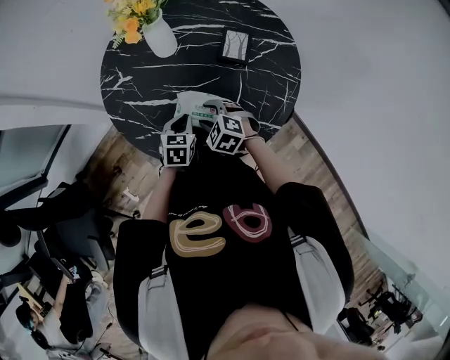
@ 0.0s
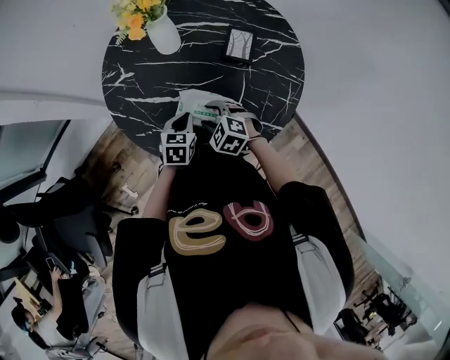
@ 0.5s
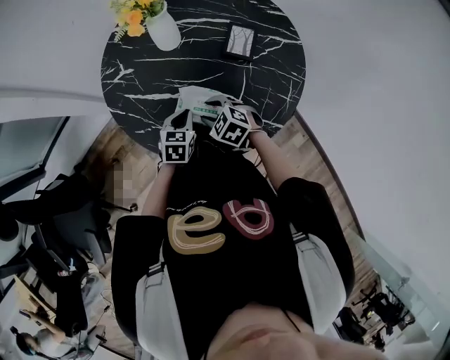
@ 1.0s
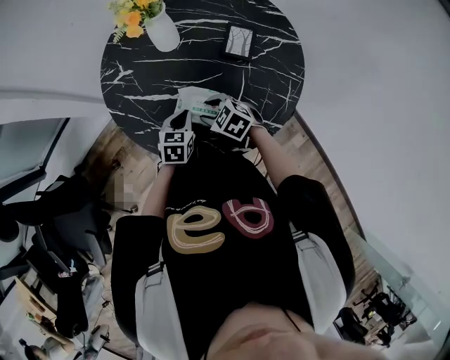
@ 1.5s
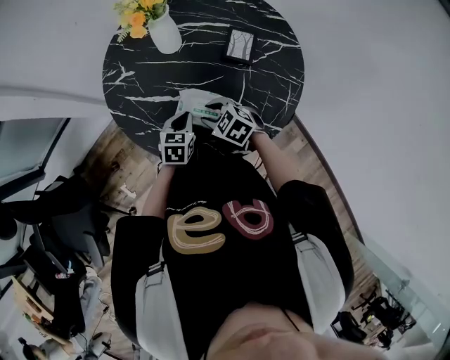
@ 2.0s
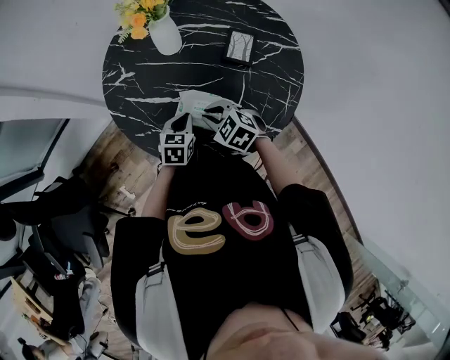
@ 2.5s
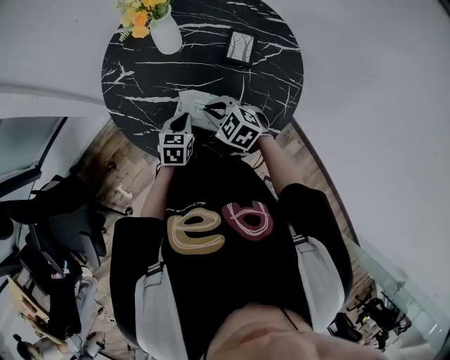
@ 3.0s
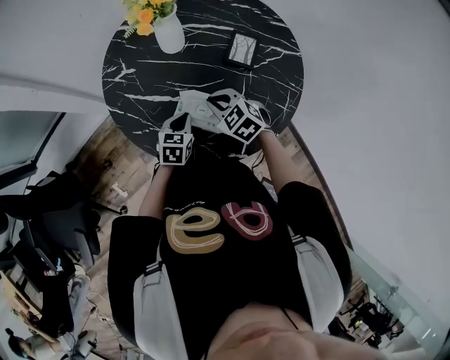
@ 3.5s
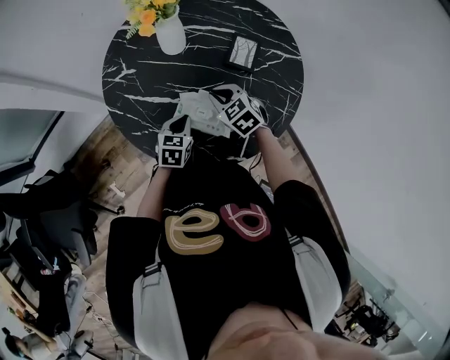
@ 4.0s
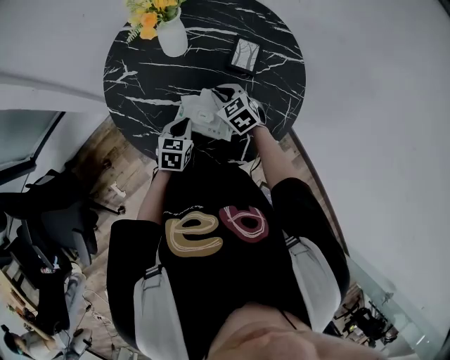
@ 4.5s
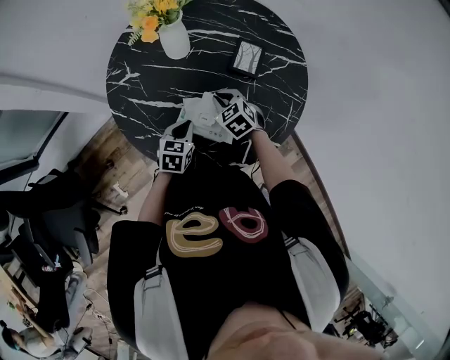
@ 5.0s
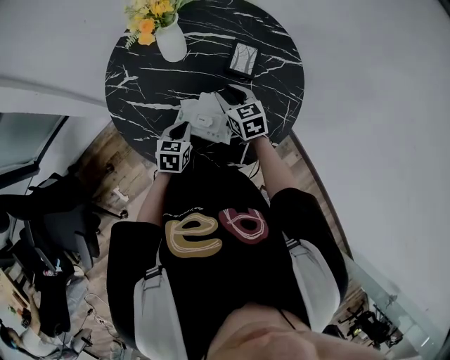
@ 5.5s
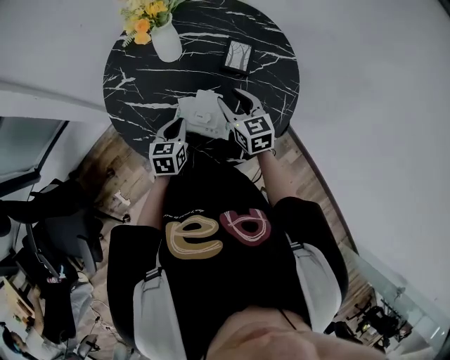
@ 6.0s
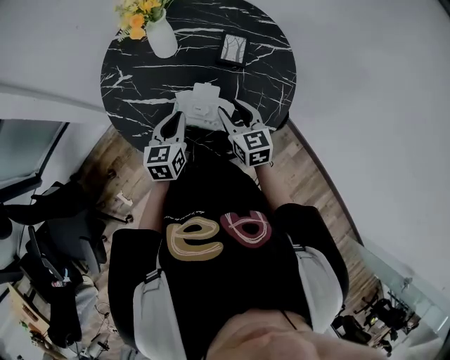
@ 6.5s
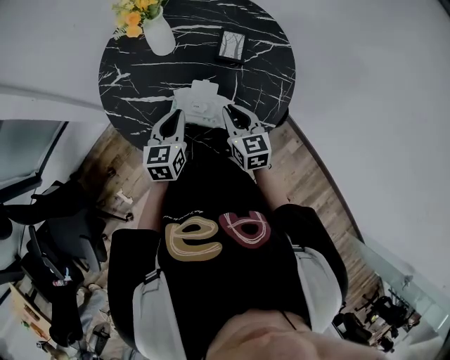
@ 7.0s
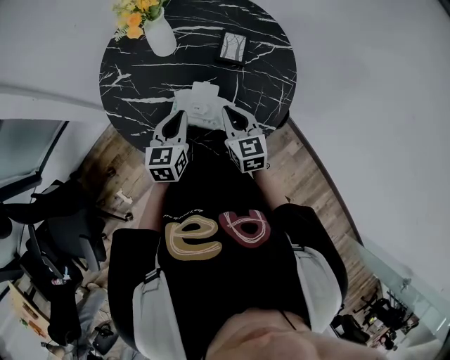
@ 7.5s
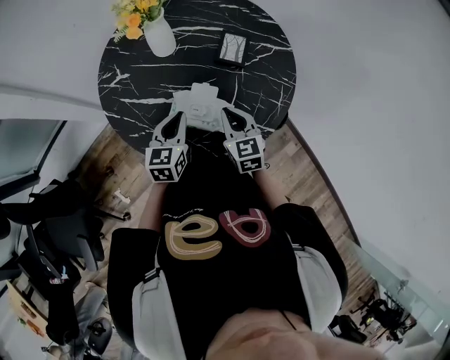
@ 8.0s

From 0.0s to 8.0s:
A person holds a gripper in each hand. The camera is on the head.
From 0.0s to 2.0s: The grippers make only small movements.
From 2.0s to 4.0s: The right gripper travels forward by some 5 cm, and closes up.
From 4.0s to 6.0s: The right gripper moves to the right and upward, some 5 cm, turns by approximately 30 degrees, and opens up.
From 6.0s to 8.0s: The right gripper heads backward, covering approximately 5 cm, and closes; the left gripper moves upward, approximately 5 cm.

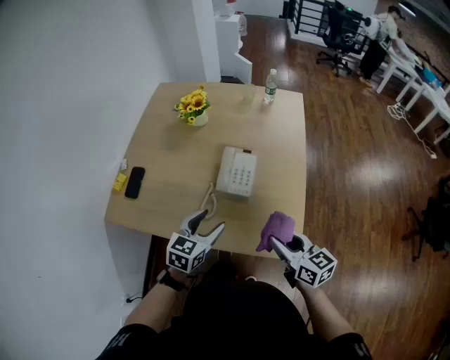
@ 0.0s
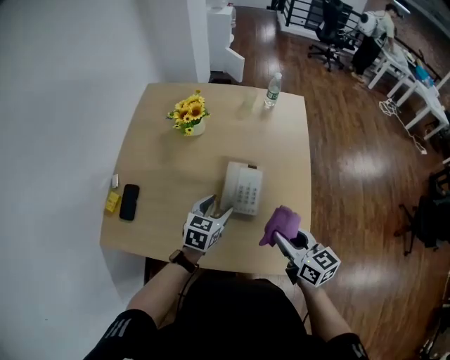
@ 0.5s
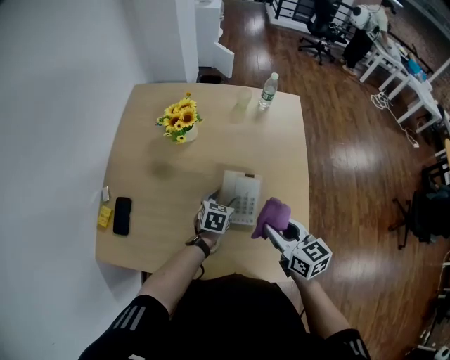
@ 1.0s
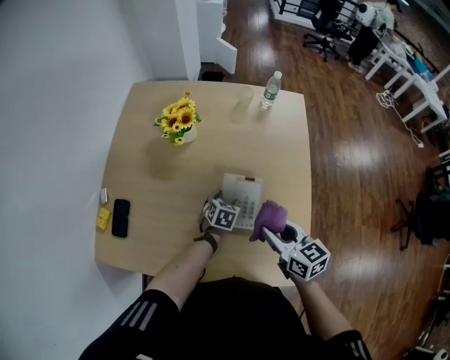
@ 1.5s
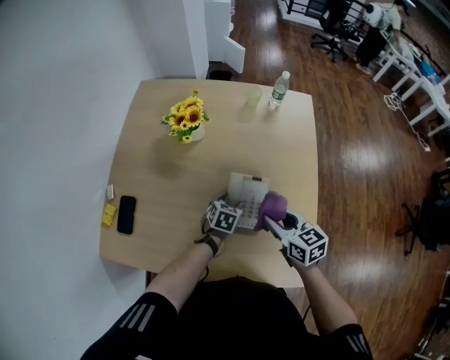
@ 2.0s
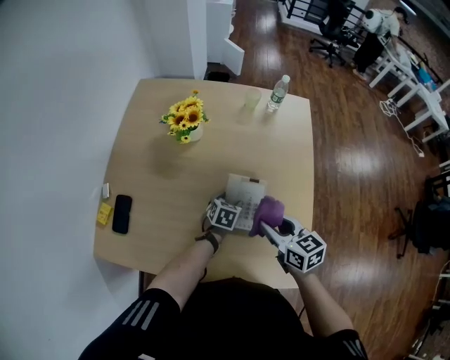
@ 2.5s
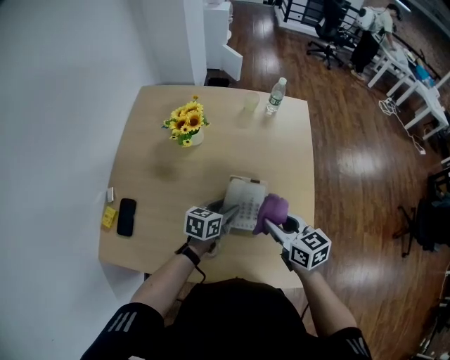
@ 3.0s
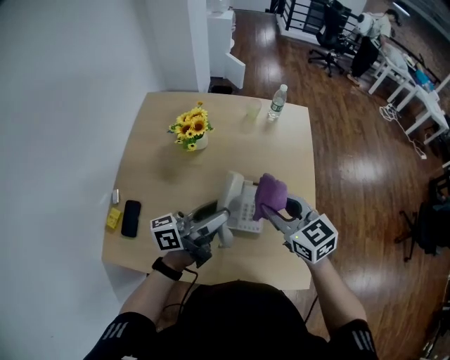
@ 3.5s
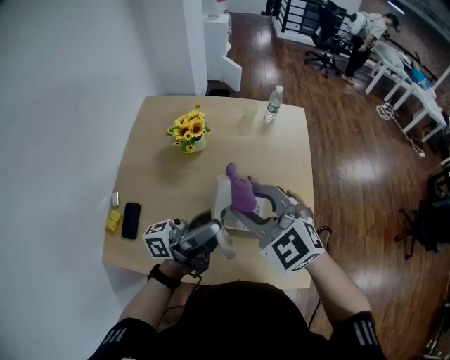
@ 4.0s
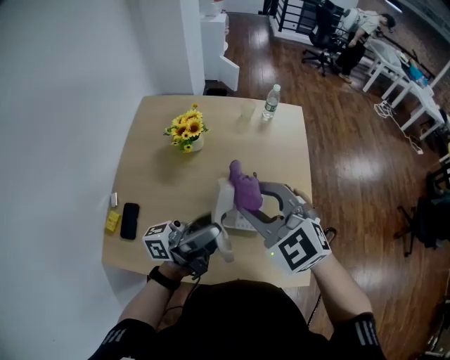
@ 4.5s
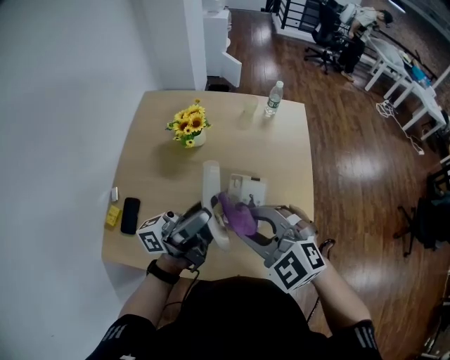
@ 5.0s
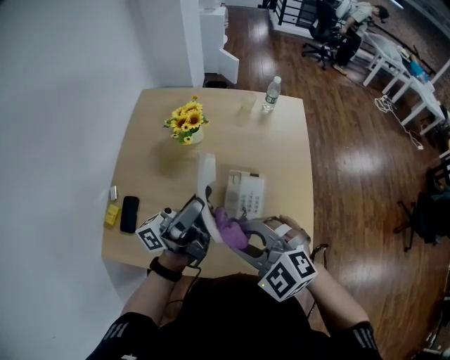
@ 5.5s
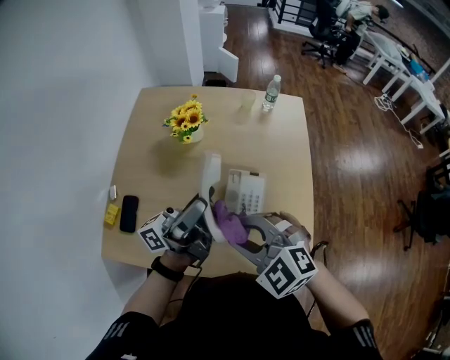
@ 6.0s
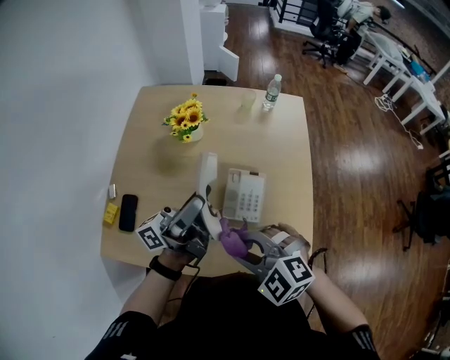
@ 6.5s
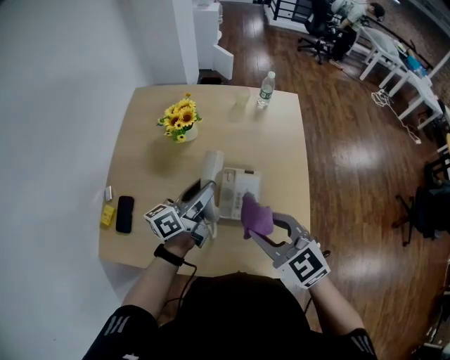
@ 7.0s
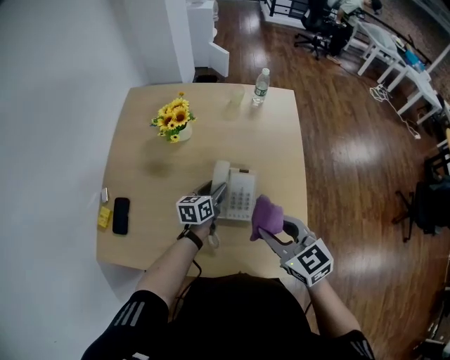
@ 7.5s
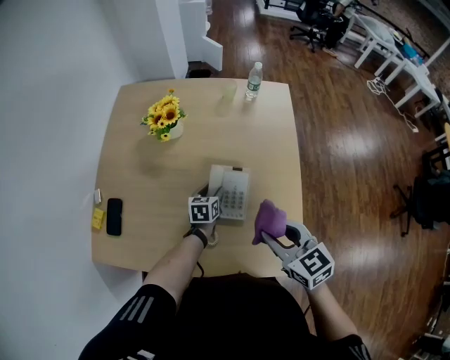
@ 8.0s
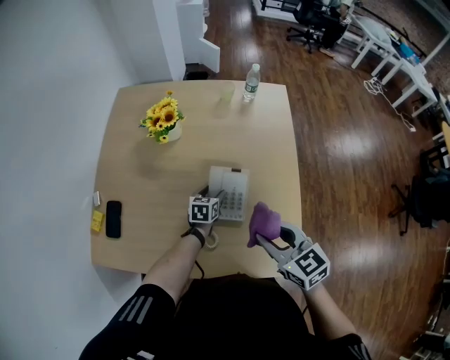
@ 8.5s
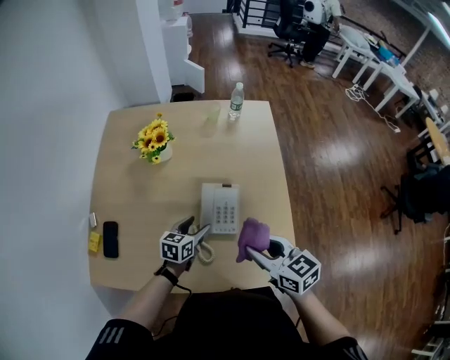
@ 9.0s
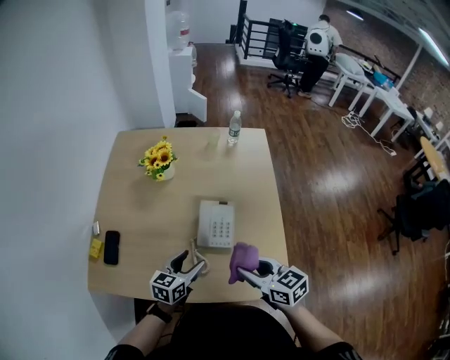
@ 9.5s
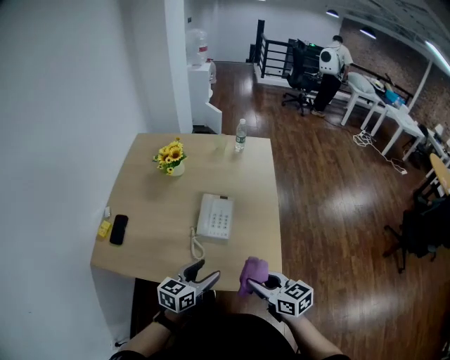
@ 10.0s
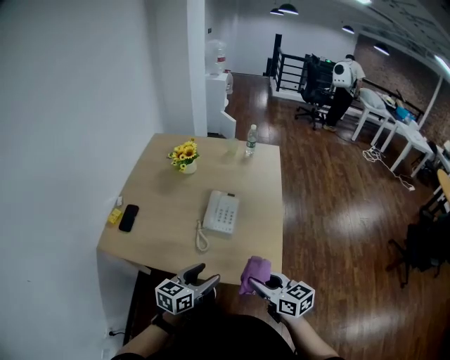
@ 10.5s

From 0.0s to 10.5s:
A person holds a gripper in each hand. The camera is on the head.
From 0.0s to 2.0s: The left gripper is displaced forward and downward by about 30 cm, and changes its angle by approximately 20 degrees. The right gripper travels forward by roughly 25 cm.
From 2.0s to 4.0s: The left gripper moves upward, roughly 35 cm, and angles its fingers upward, by about 80 degrees; the right gripper travels upward and to the left by some 25 cm, and rolls counterclockwise, seen from behind, by roughly 50 degrees.
From 4.0s to 6.5s: The right gripper is displaced backward and downward by some 15 cm, and changes its angle by about 20 degrees.
From 6.5s to 8.5s: The right gripper moves to the right, roughly 15 cm, and rolls clockwise, seen from behind, by about 50 degrees; the left gripper is displaced downward by roughly 35 cm, and points its fingers approximately 80 degrees further downward.
From 8.5s to 10.5s: The right gripper goes some 20 cm backward. Meanwhile the left gripper travels backward and upward by roughly 40 cm, and changes its angle by approximately 30 degrees.

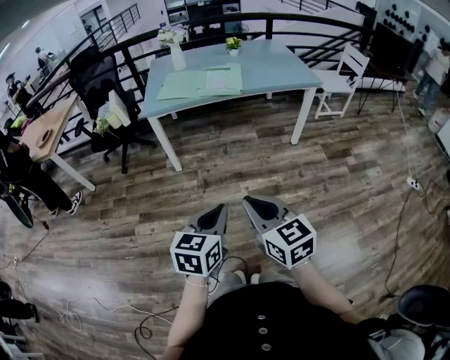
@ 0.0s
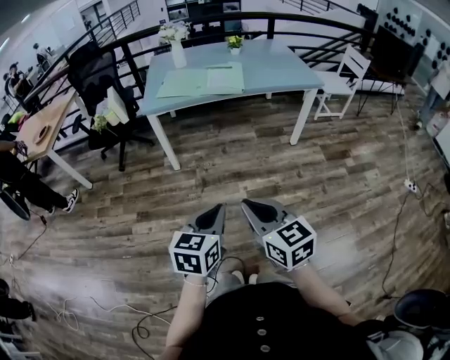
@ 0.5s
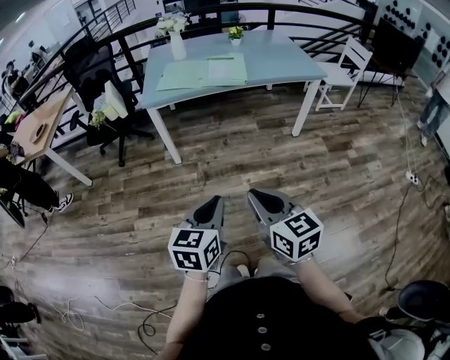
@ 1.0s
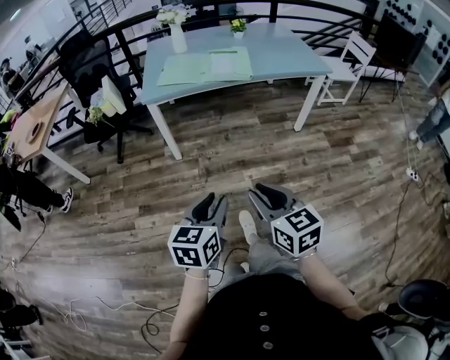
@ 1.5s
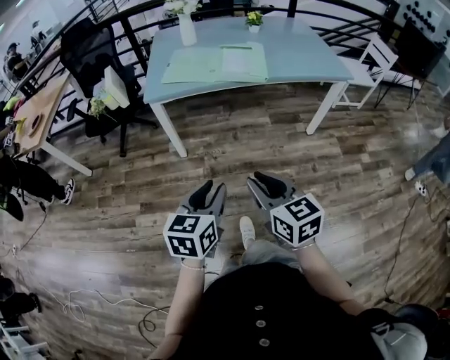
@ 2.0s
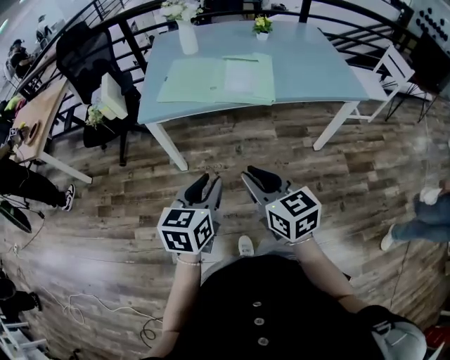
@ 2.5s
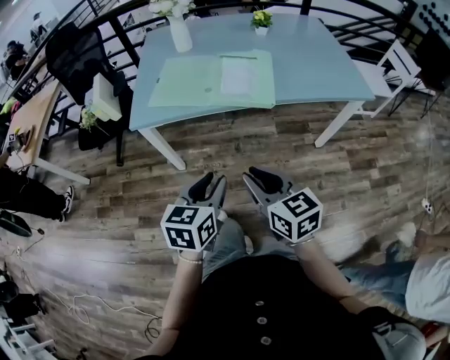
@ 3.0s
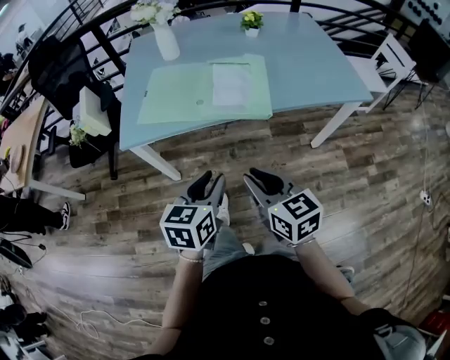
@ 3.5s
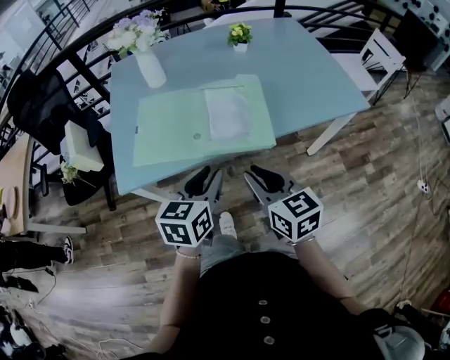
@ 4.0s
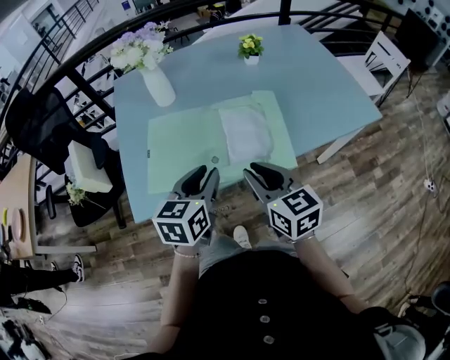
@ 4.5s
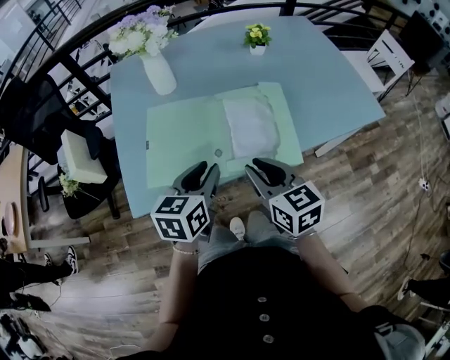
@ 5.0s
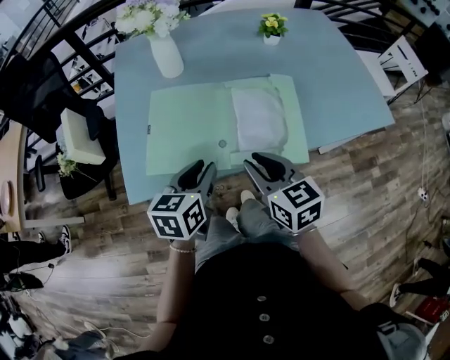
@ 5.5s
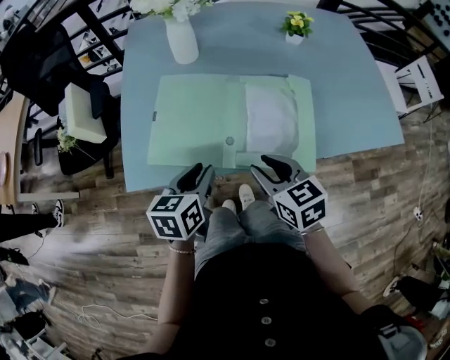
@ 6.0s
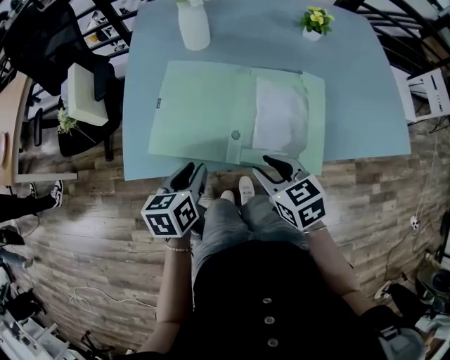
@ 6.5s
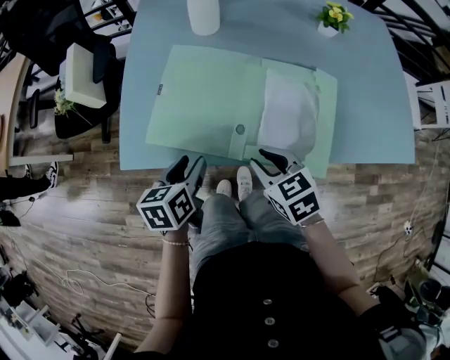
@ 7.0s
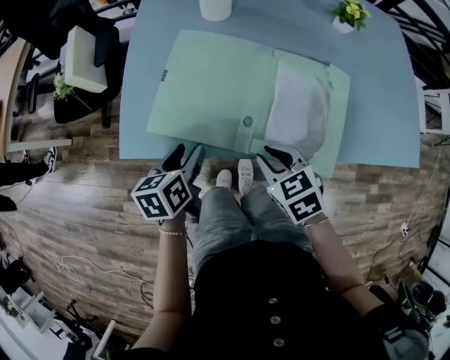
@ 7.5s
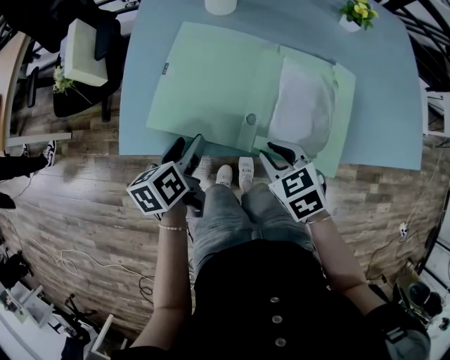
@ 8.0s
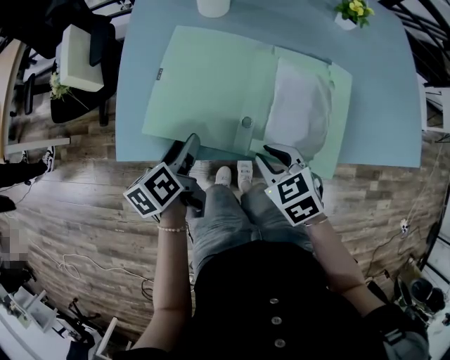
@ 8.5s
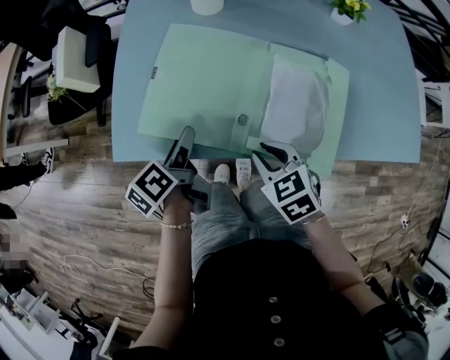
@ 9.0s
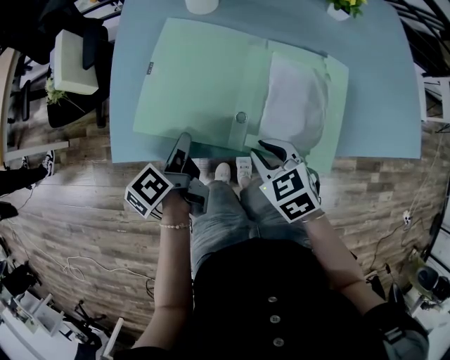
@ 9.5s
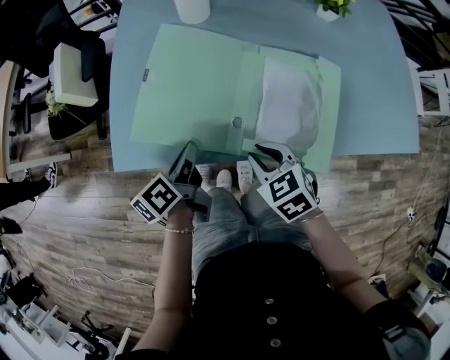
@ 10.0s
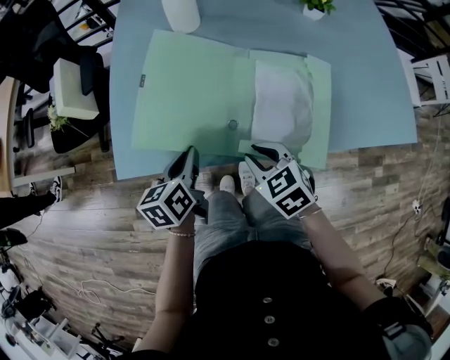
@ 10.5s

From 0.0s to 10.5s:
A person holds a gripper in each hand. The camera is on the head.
From 0.0s to 2.0s: The left gripper heads forward and to the left, covering roughly 20 cm, and opens up. The right gripper shifts approximately 20 cm forward.
From 2.0s to 4.0s: Both grippers are carried forward, about 40 cm.
From 4.0s to 6.5s: The left gripper shifts some 20 cm to the left, downward and forward, and turns by about 30 degrees; the right gripper moves forward, downward and to the left, approximately 20 cm, and rotates some 30 degrees.
From 6.5s to 8.5s: Both grippers move downward, about 5 cm. The left gripper turns by approximately 30 degrees, and opens.
From 8.5s to 10.5s: The left gripper closes up.
